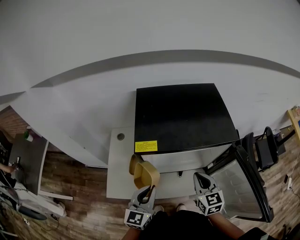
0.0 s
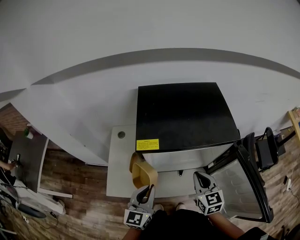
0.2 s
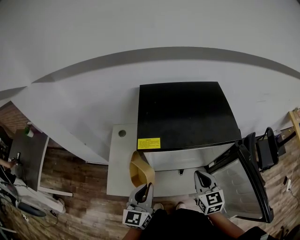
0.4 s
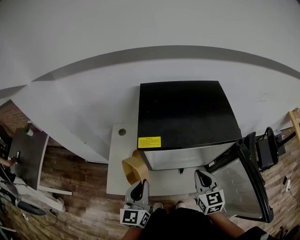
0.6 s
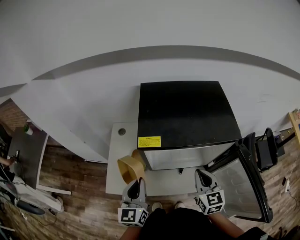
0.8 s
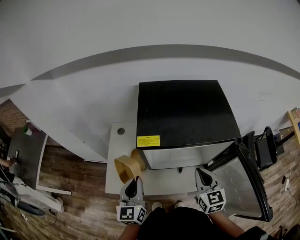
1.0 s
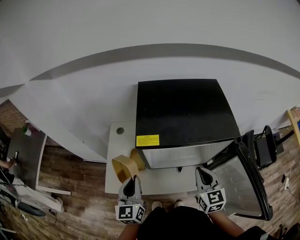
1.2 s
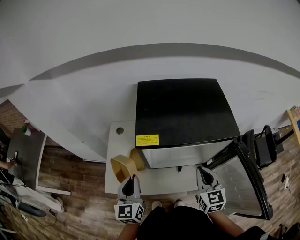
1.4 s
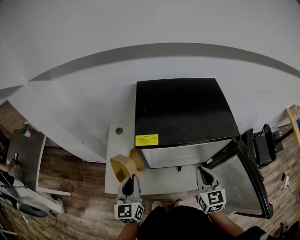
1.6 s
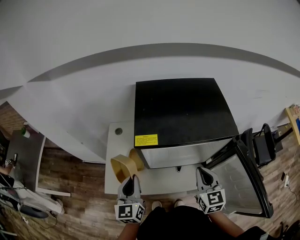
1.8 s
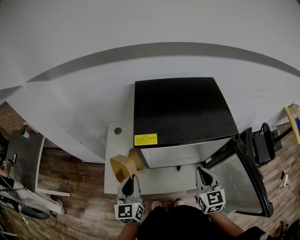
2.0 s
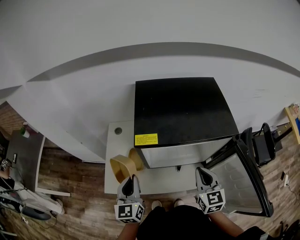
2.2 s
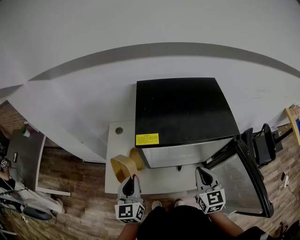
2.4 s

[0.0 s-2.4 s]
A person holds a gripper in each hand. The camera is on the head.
0.0 to 1.2 s: The left gripper is displaced to the left by about 10 cm, and changes its angle by roughly 20 degrees.
1.2 to 2.4 s: The two grippers keep their place.

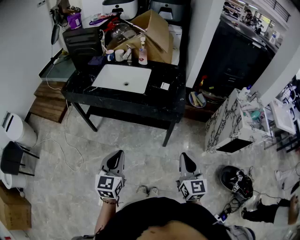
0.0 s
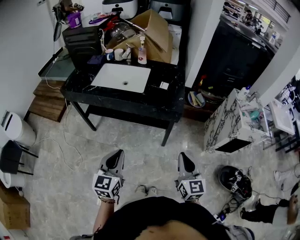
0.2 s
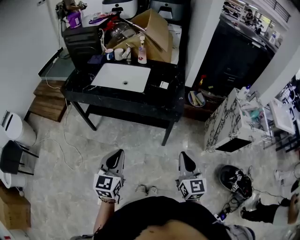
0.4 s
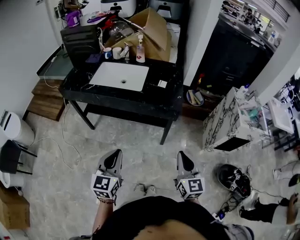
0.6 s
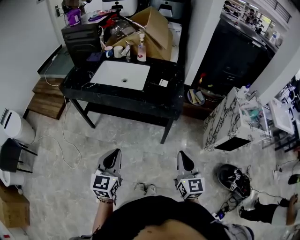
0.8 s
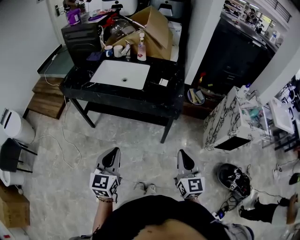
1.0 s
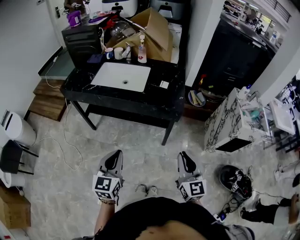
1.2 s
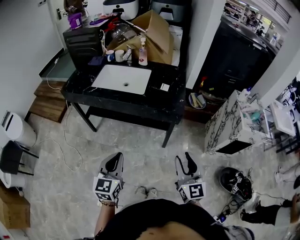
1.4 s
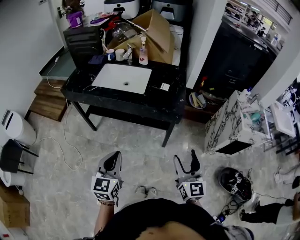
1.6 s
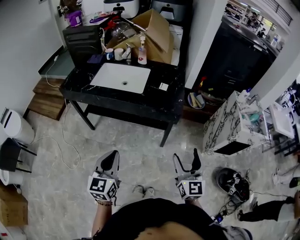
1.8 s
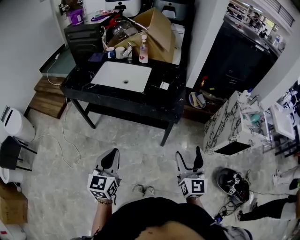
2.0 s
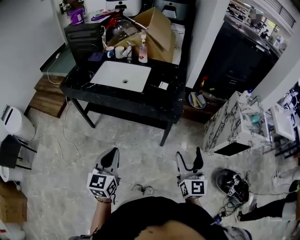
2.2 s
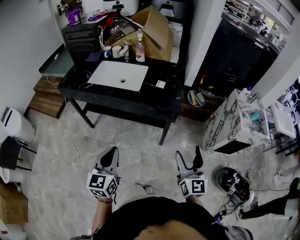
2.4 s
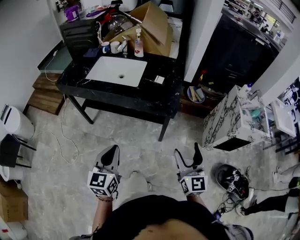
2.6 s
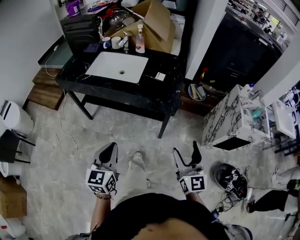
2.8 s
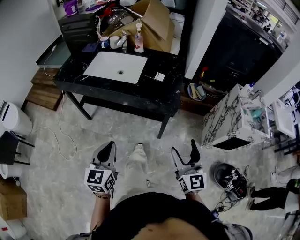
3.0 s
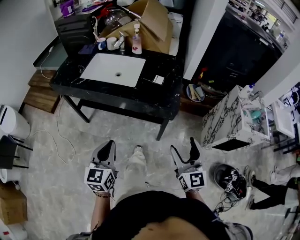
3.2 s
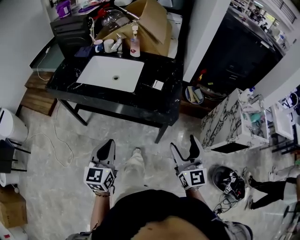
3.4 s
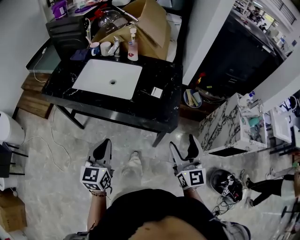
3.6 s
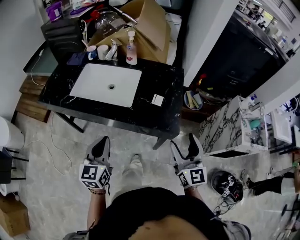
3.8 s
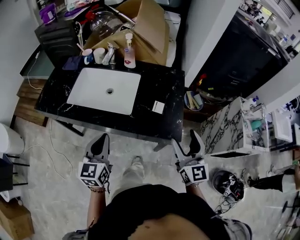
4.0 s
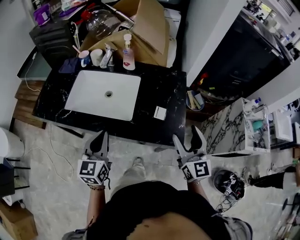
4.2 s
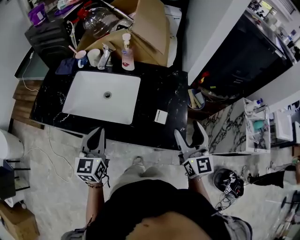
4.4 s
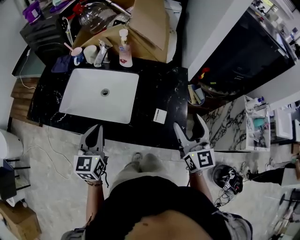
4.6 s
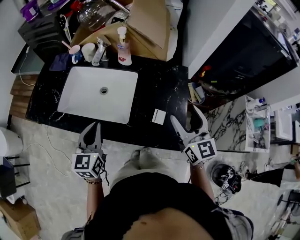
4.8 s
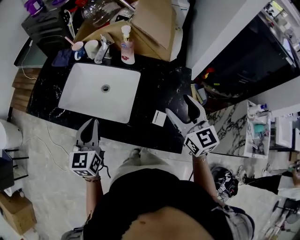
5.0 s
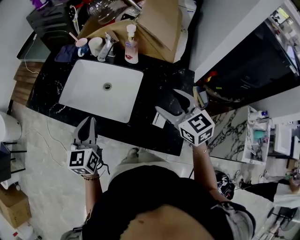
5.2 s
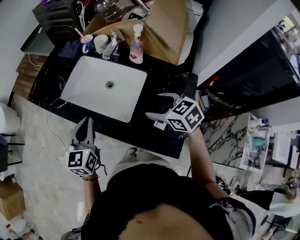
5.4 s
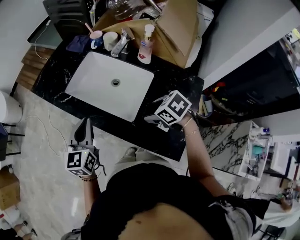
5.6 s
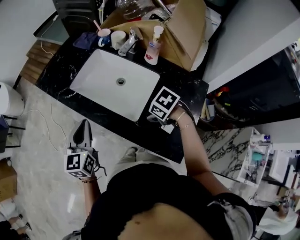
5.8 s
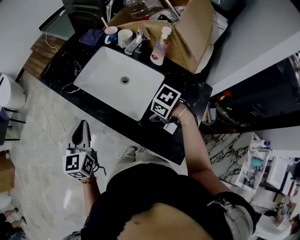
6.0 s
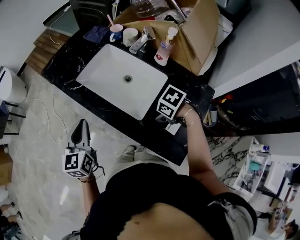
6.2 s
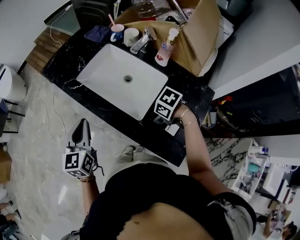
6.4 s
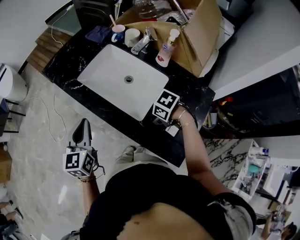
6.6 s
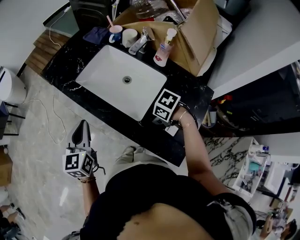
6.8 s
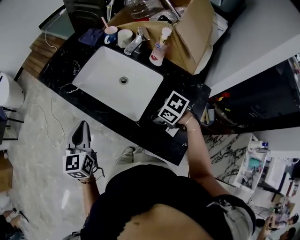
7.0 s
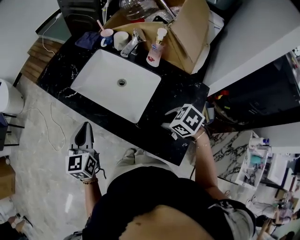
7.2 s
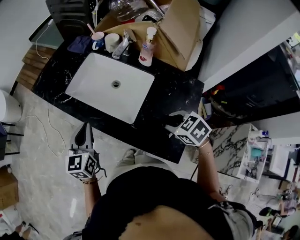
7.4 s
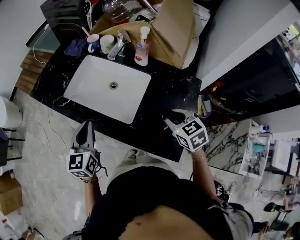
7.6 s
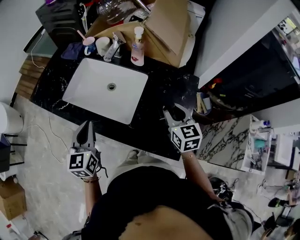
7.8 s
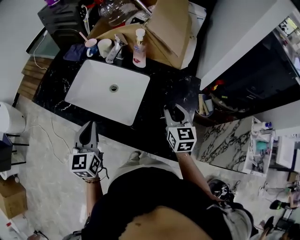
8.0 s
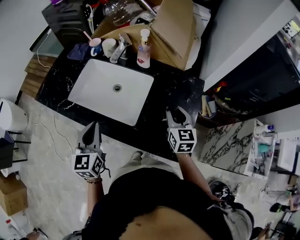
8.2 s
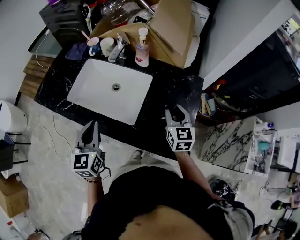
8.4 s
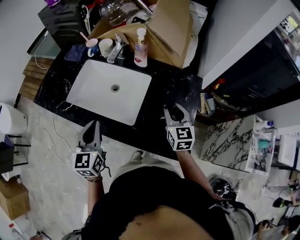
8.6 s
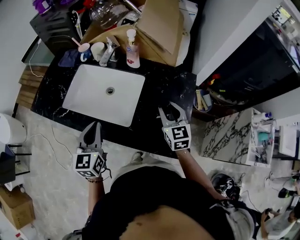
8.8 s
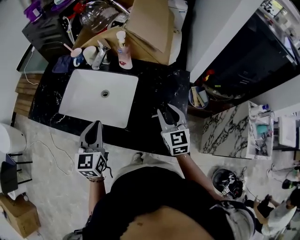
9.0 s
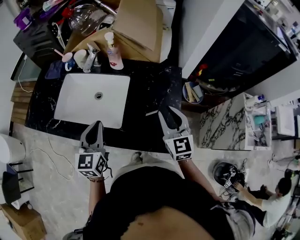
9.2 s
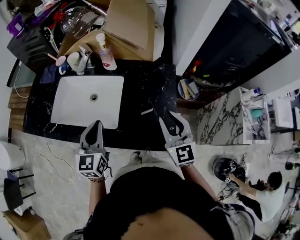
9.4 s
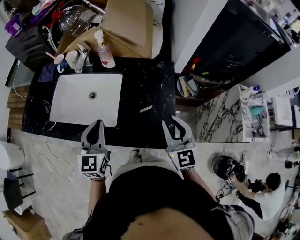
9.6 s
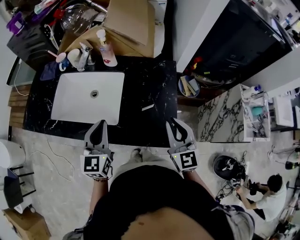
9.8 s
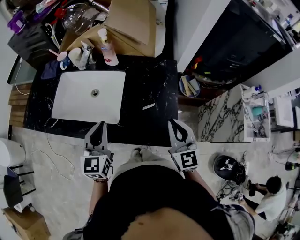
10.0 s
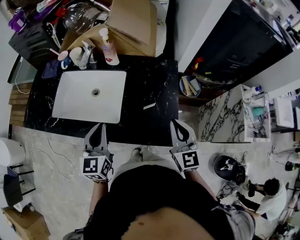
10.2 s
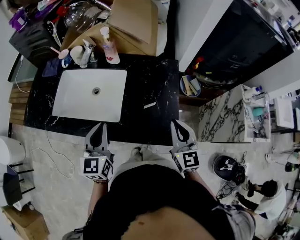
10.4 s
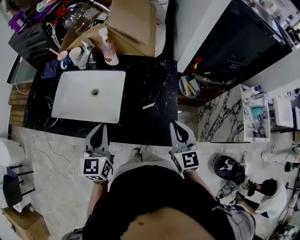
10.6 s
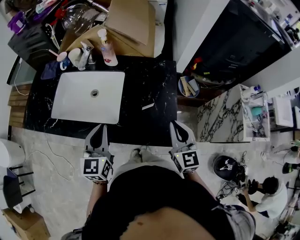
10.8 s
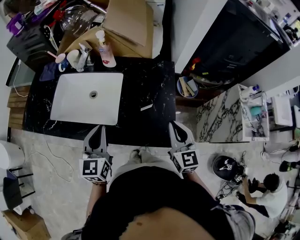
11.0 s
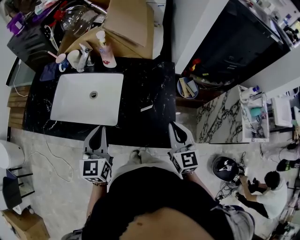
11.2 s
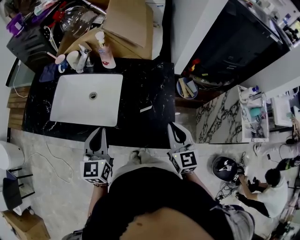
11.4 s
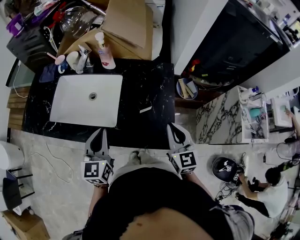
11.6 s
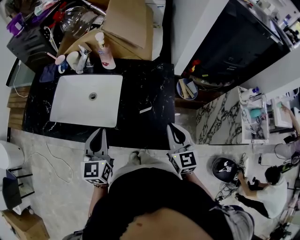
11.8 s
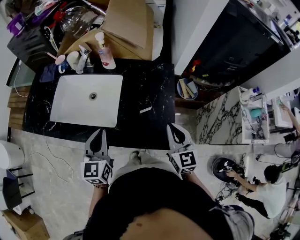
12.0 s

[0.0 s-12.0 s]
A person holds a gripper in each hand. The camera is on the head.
0.0 to 1.6 s: The right gripper opens up.
1.6 to 3.0 s: The right gripper shifts by roughly 5 cm.
3.0 to 4.4 s: The grippers both shift forward by some 35 cm.
4.4 to 6.0 s: The right gripper moves roughly 25 cm, and tips its fingers downward by approximately 70 degrees. Meanwhile the left gripper moves some 10 cm, and swivels approximately 30 degrees.
6.0 to 7.6 s: The left gripper changes place by approximately 5 cm; the right gripper shifts by some 10 cm, changes its angle by roughly 50 degrees, and closes up.
7.6 to 9.0 s: The right gripper rotates approximately 40 degrees; the left gripper is displaced to the right by roughly 5 cm.
9.0 to 10.4 s: The right gripper shifts some 15 cm backward and to the right, while the left gripper changes place by about 5 cm.
10.4 to 12.0 s: The grippers move only a little.

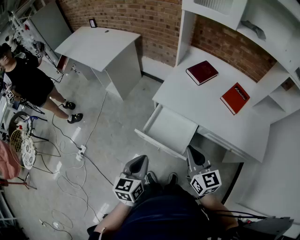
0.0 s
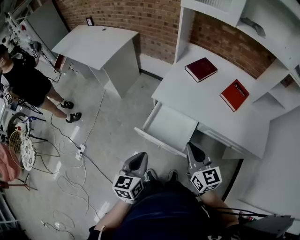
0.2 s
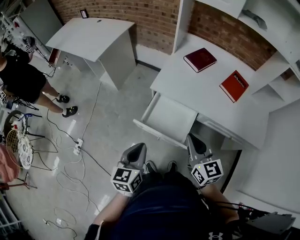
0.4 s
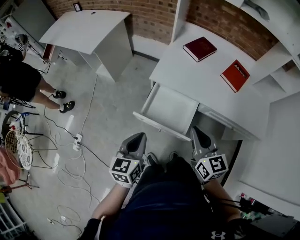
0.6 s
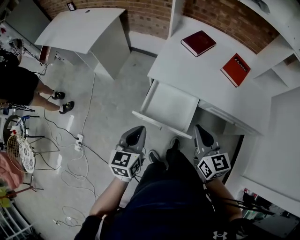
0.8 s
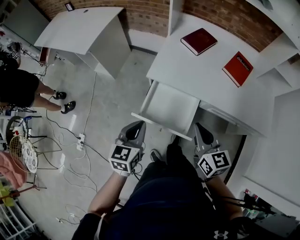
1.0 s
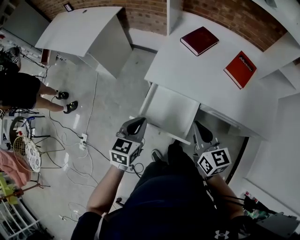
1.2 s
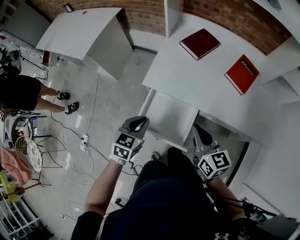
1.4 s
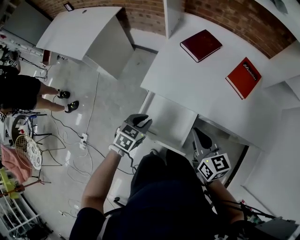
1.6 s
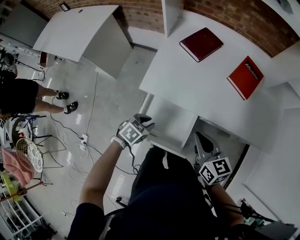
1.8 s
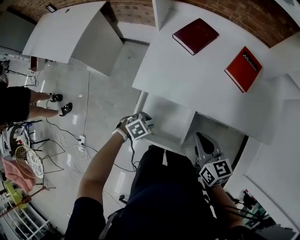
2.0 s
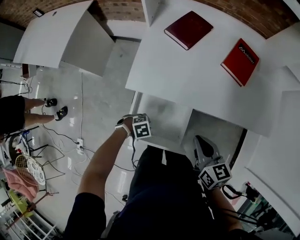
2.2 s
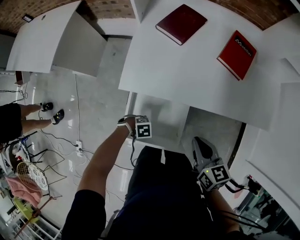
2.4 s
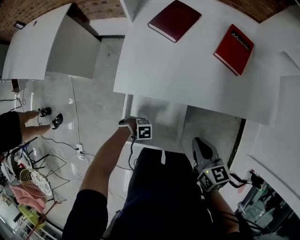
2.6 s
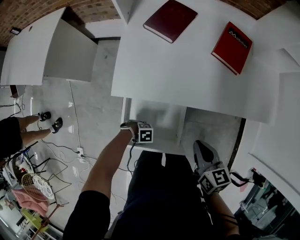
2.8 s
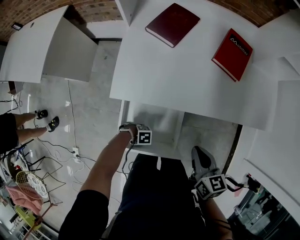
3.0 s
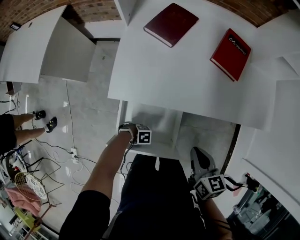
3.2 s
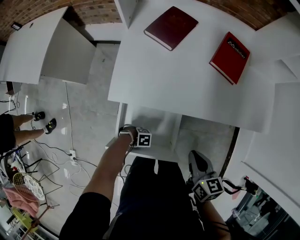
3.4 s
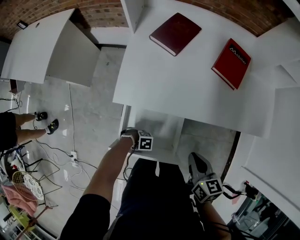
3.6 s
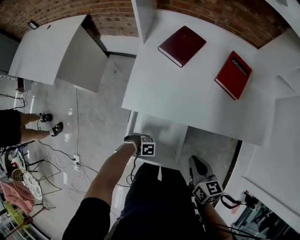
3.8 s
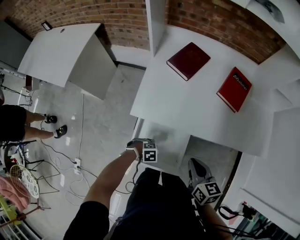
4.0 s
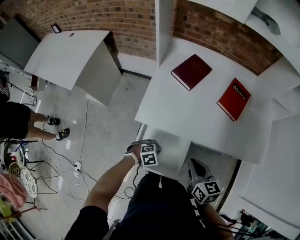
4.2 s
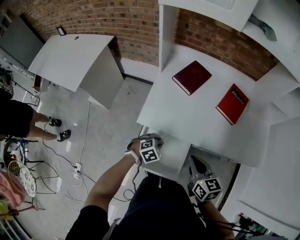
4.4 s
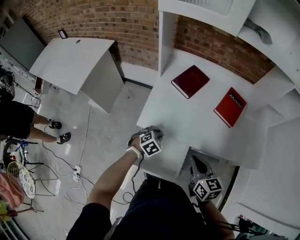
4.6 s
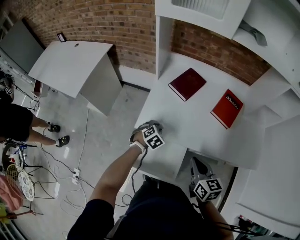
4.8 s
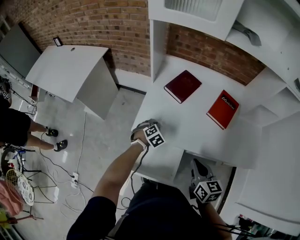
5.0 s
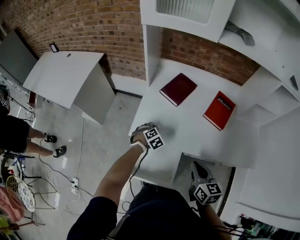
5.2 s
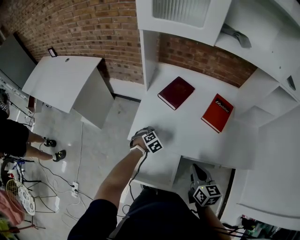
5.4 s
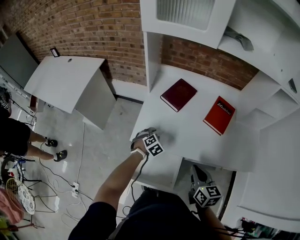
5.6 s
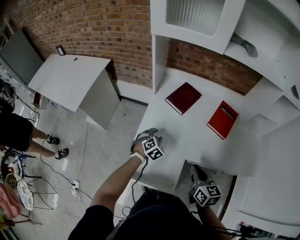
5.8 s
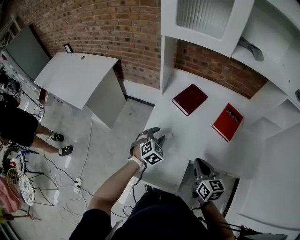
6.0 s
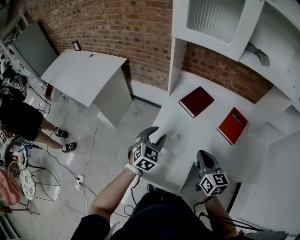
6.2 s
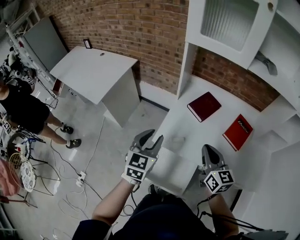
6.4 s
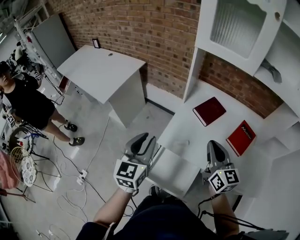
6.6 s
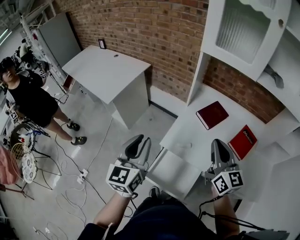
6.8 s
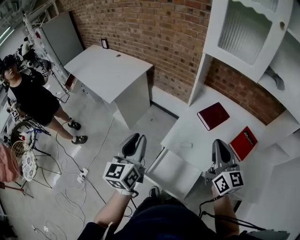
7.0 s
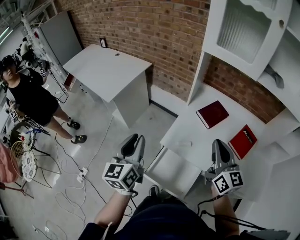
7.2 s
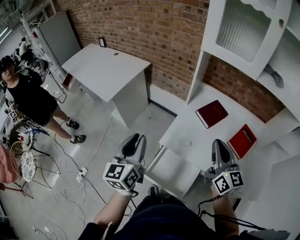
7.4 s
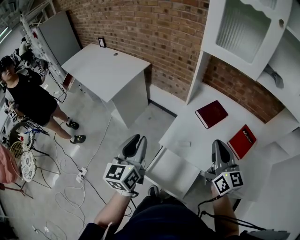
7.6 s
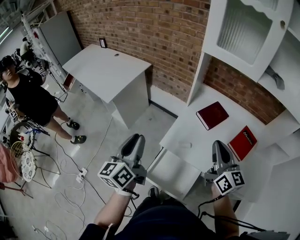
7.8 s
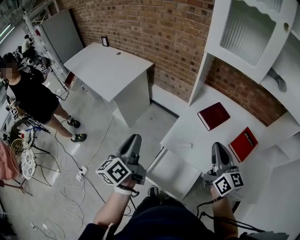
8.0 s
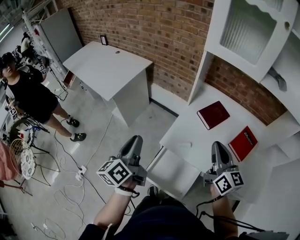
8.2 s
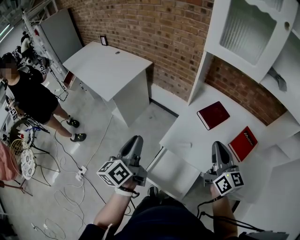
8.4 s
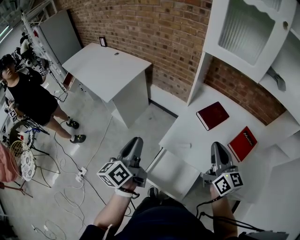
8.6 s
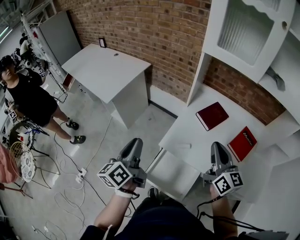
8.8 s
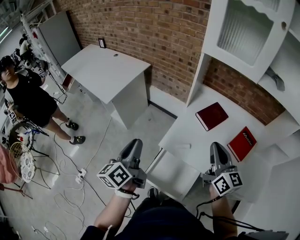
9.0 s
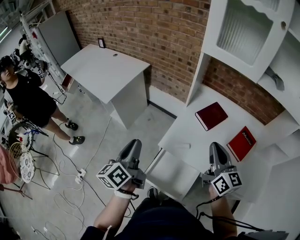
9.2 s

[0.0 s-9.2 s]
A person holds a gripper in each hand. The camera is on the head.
0.0 to 1.6 s: The right gripper is displaced forward, downward and to the right by about 15 cm, while the left gripper moves forward and downward, about 25 cm, and turns by about 40 degrees.
1.6 to 3.0 s: The right gripper heads downward, covering approximately 10 cm, and swivels some 30 degrees; the left gripper goes approximately 30 cm downward, and changes its angle by roughly 80 degrees.
3.0 to 4.6 s: The left gripper goes some 25 cm upward, and turns by about 60 degrees. Meanwhile the right gripper goes approximately 10 cm upward.
4.6 to 6.2 s: The right gripper travels forward and upward by approximately 10 cm. Meanwhile the left gripper moves upward, about 20 cm, and swivels roughly 40 degrees.
6.2 to 7.6 s: The left gripper moves to the left, upward and backward, roughly 25 cm, and turns by approximately 50 degrees. The right gripper goes roughly 15 cm upward.
7.6 to 9.2 s: The left gripper turns by approximately 30 degrees.
